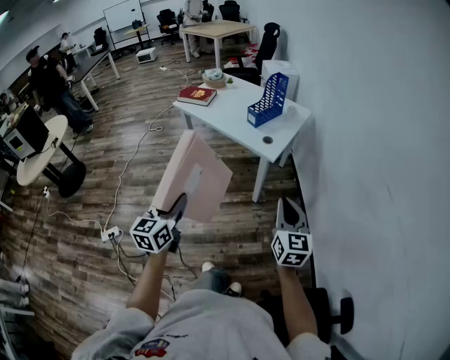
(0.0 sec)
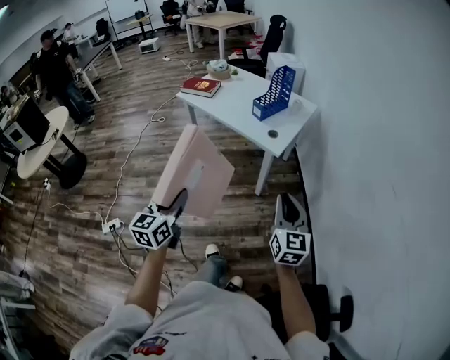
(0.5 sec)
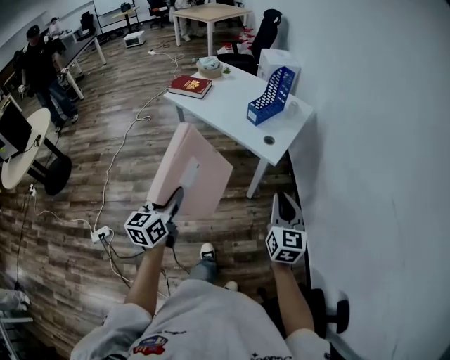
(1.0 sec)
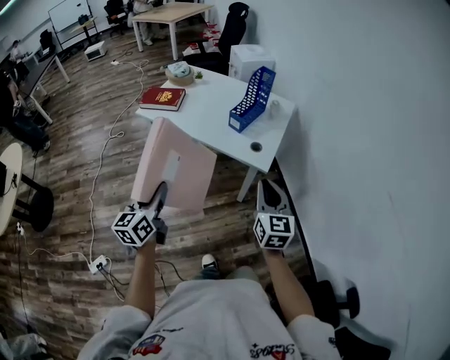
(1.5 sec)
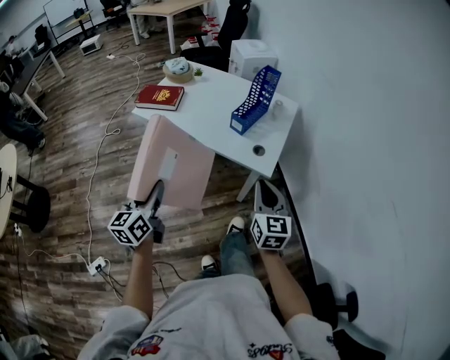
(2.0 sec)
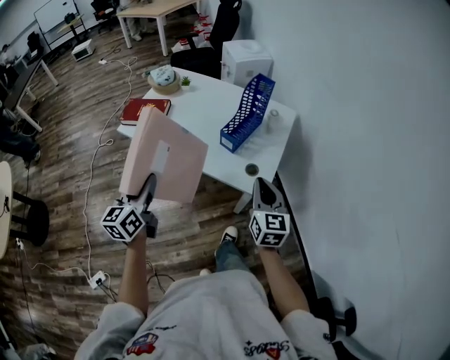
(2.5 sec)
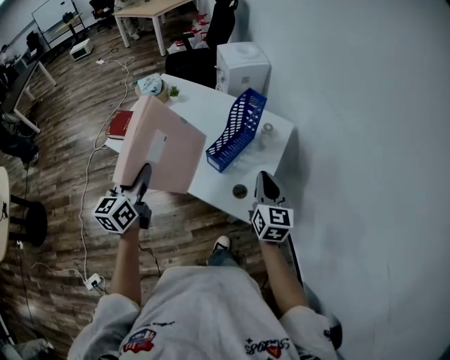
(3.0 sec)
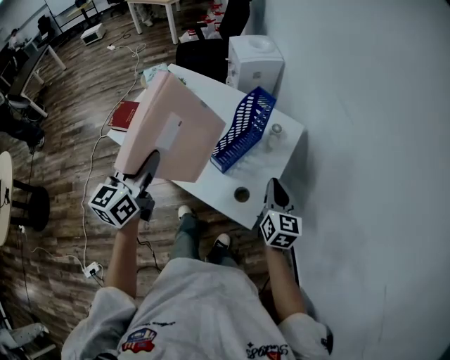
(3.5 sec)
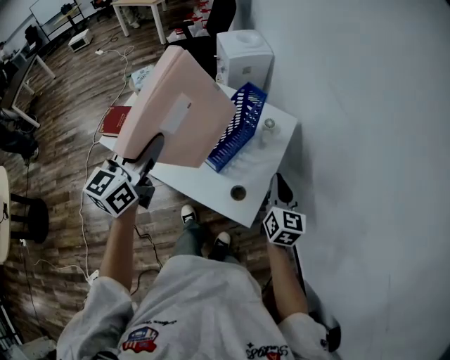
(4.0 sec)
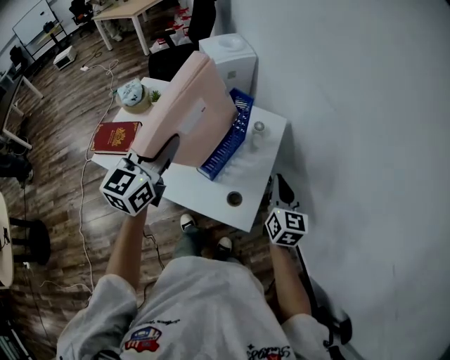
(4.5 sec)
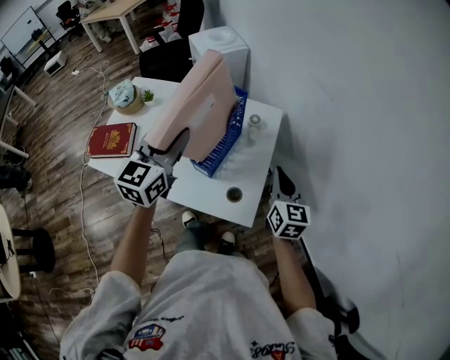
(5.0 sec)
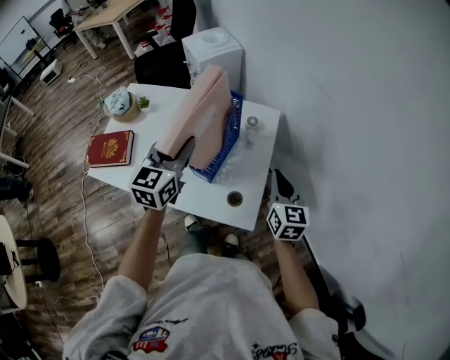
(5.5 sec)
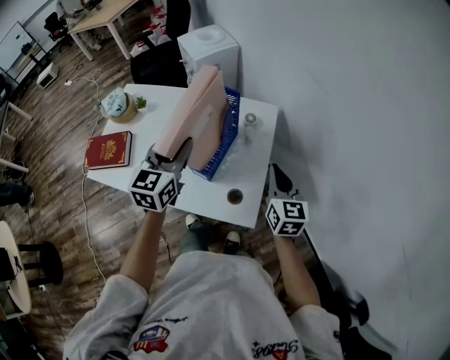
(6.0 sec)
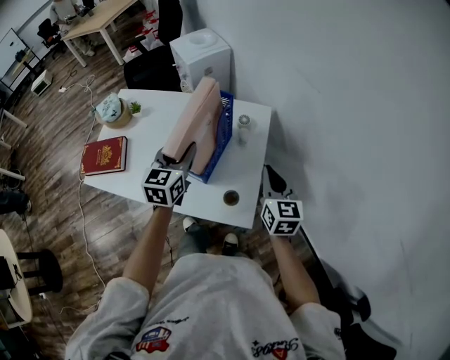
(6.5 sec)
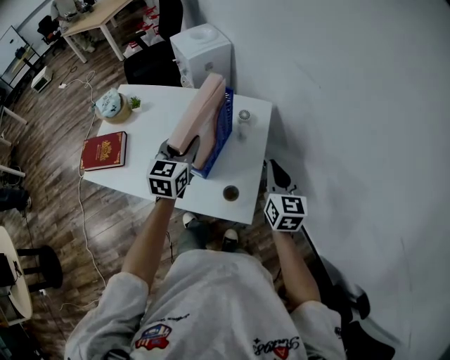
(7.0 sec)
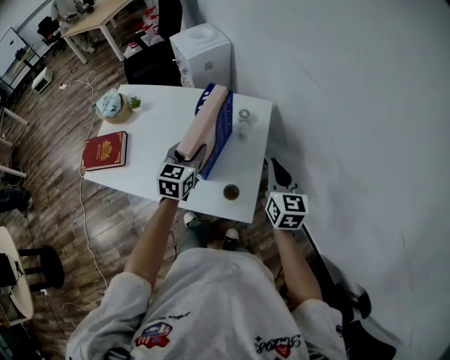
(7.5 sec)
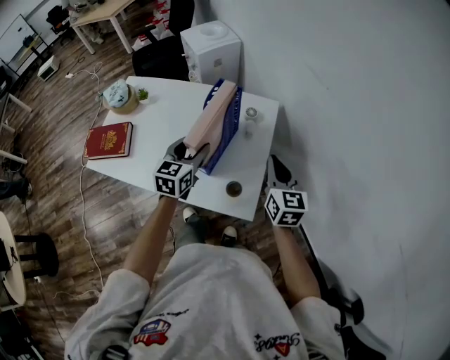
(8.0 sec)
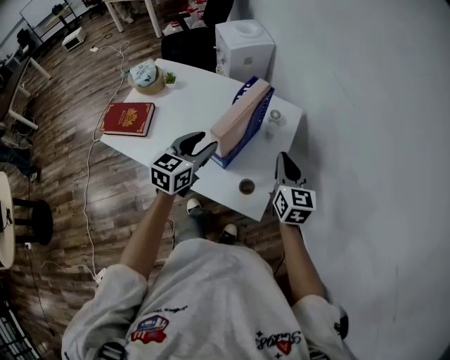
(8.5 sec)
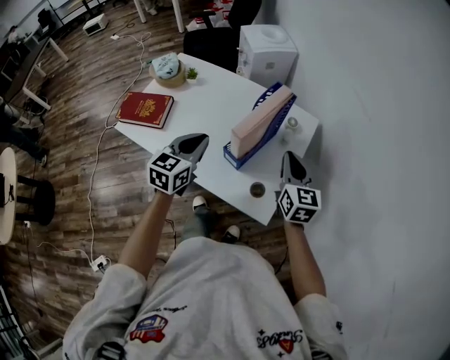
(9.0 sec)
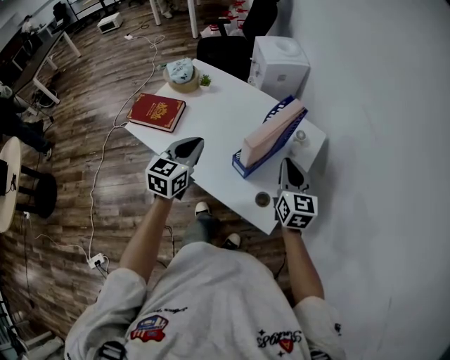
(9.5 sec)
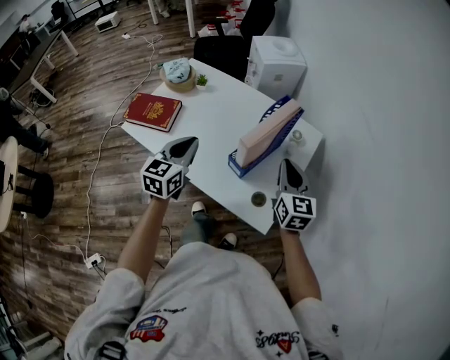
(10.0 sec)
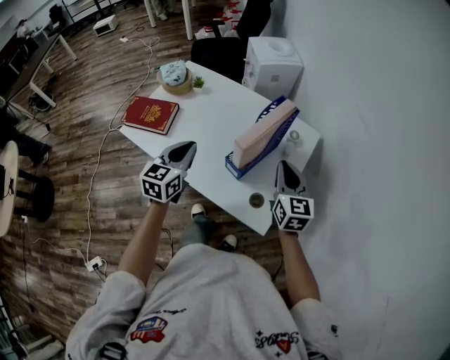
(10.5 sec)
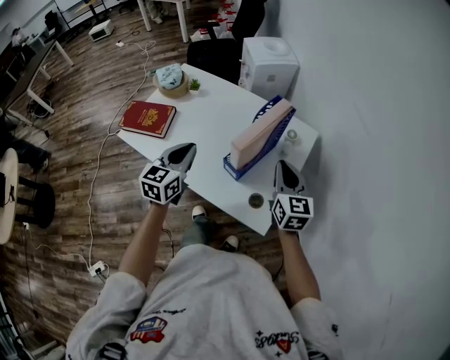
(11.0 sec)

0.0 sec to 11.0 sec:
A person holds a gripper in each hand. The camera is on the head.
0.0 sec to 2.0 sec: The grippers both shift forward and to the left by roughly 35 cm.
2.0 sec to 3.5 sec: The right gripper heads forward and to the right, covering approximately 40 cm. Meanwhile the left gripper moves forward, approximately 35 cm.
3.5 sec to 5.5 sec: The left gripper moves forward and to the right, some 20 cm, and rotates roughly 20 degrees. Meanwhile the right gripper moves about 5 cm.
5.5 sec to 7.5 sec: The left gripper goes approximately 10 cm downward.
7.5 sec to 9.0 sec: The left gripper moves to the left, backward and upward, roughly 15 cm, and closes up, while the right gripper shifts some 10 cm to the left.
9.0 sec to 11.0 sec: The grippers move only a little.

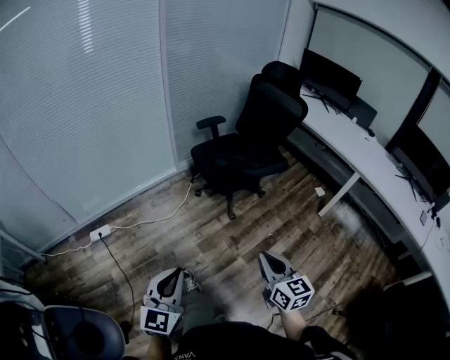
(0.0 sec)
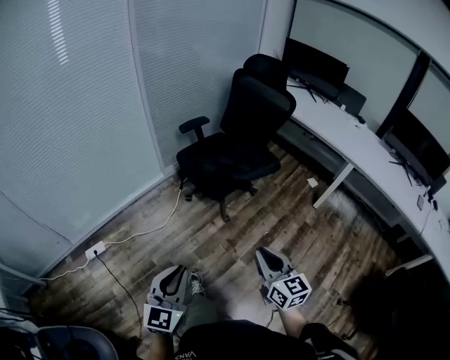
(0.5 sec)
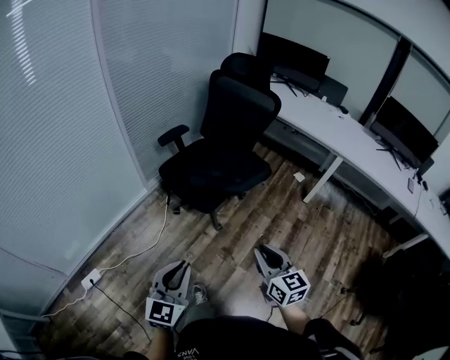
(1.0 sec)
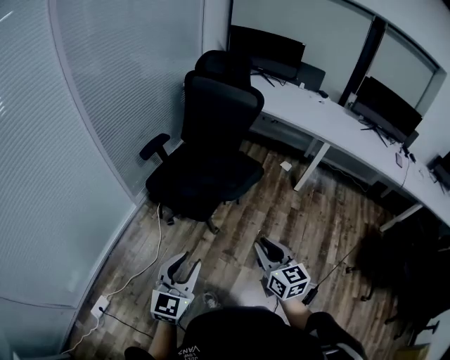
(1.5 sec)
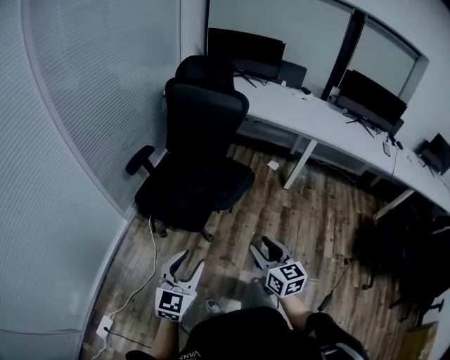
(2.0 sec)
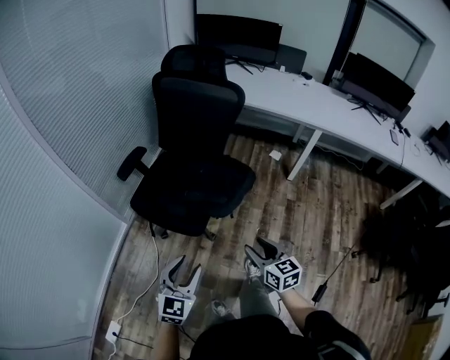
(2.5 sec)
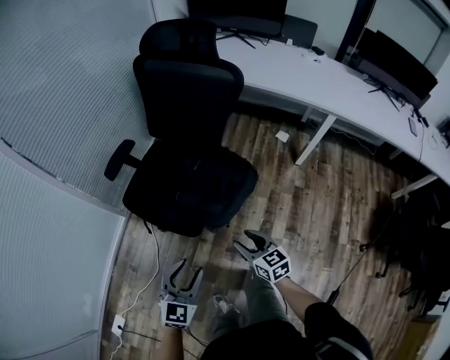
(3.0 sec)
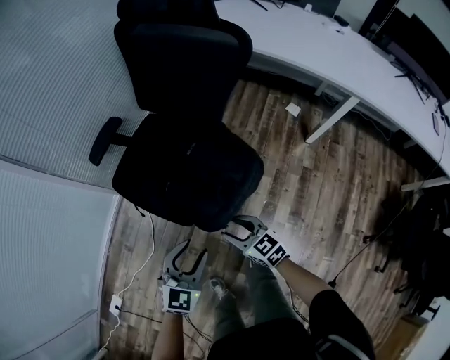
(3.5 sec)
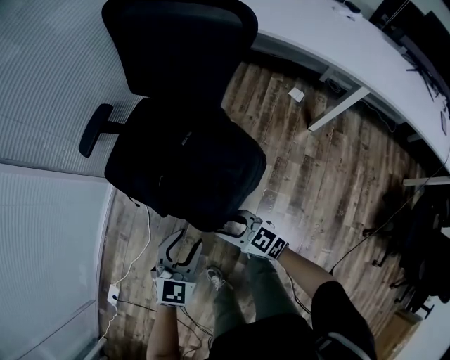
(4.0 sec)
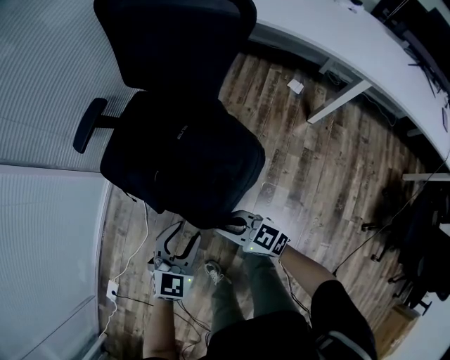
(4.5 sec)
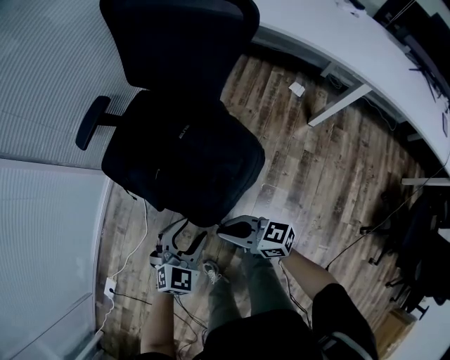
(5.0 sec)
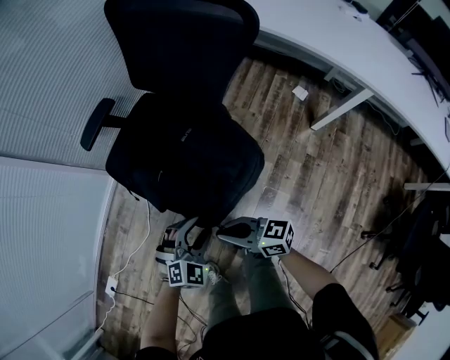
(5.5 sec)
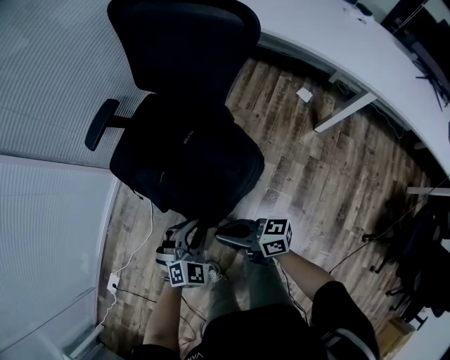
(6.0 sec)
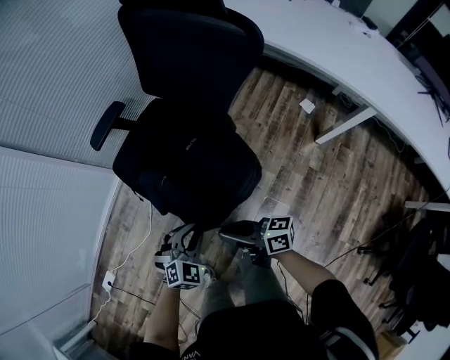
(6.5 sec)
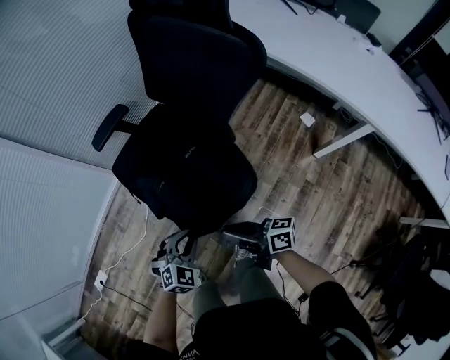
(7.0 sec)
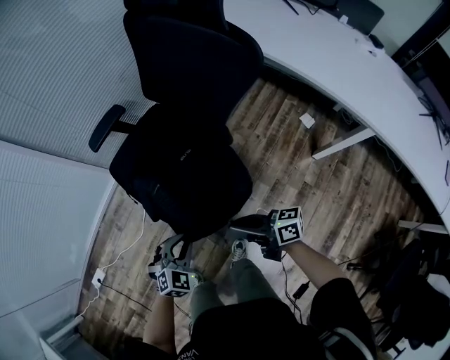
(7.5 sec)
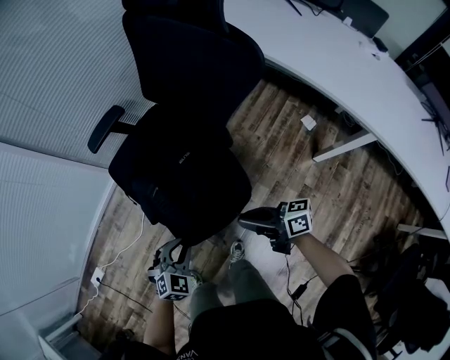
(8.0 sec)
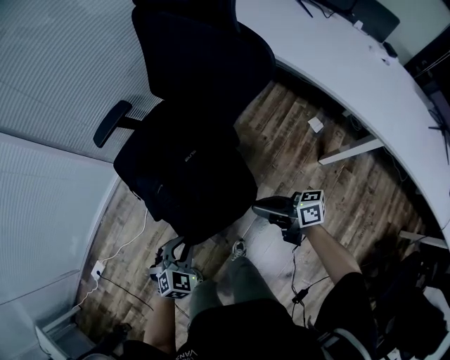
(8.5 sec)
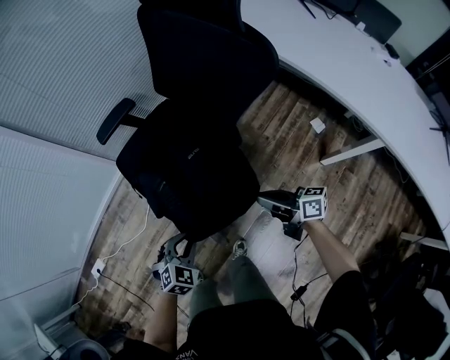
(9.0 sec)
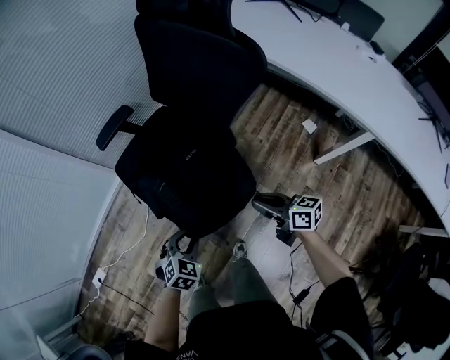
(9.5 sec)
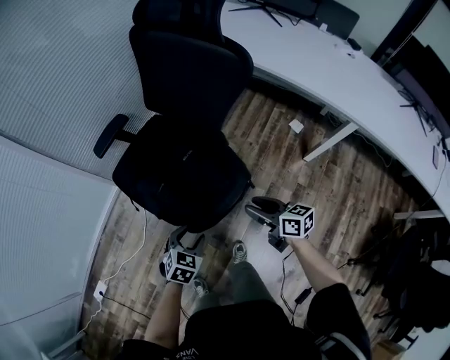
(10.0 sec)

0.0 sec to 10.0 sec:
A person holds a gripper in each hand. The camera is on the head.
0.0 sec to 2.0 sec: The right gripper ends up some 30 cm from where it was, changes its angle by approximately 30 degrees, and opens, while the left gripper ends up about 40 cm from where it was, changes its angle by roughly 40 degrees, and opens up.
2.0 sec to 4.0 sec: The right gripper changes place by approximately 40 cm, and rotates approximately 50 degrees. Meanwhile the left gripper moves approximately 40 cm.
4.0 sec to 6.0 sec: The right gripper shifts roughly 5 cm upward, rotates some 40 degrees, and closes its fingers. The left gripper goes some 5 cm downward, turns by roughly 20 degrees, and closes.
6.0 sec to 8.0 sec: The right gripper moves to the right, some 15 cm.
8.0 sec to 10.0 sec: The right gripper swivels about 30 degrees, and opens; the left gripper opens its fingers.

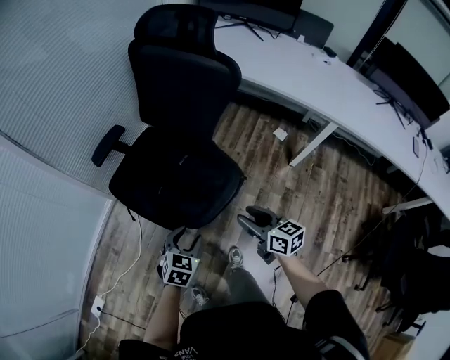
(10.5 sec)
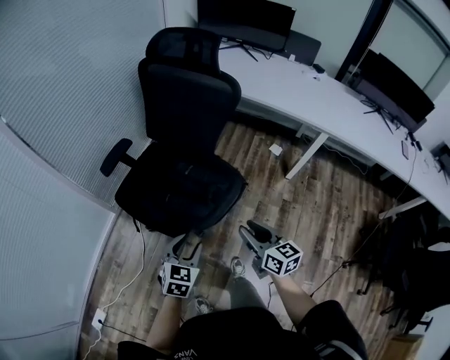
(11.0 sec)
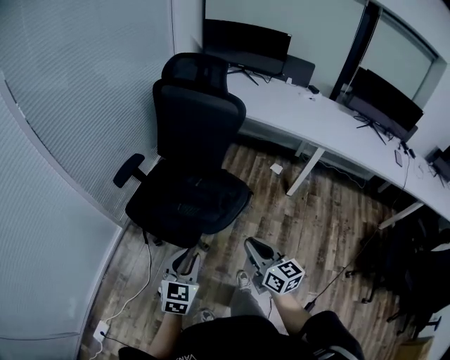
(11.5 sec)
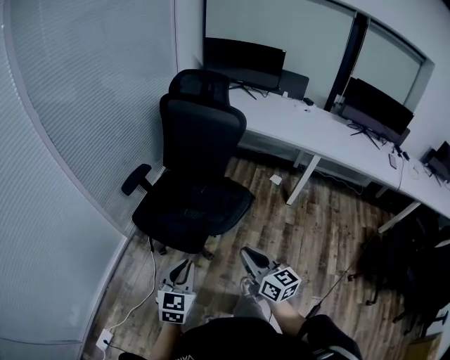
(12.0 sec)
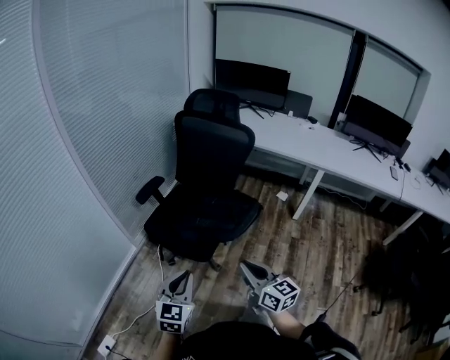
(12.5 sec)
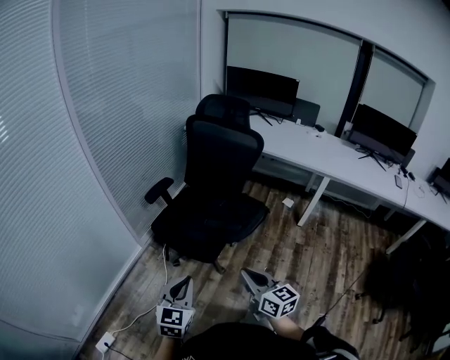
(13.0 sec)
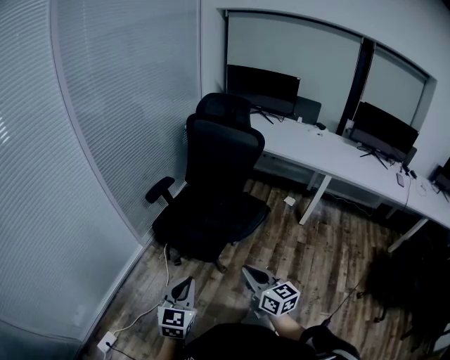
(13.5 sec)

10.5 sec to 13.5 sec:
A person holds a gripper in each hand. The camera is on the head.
10.5 sec to 12.0 sec: The left gripper travels upward, backward and to the left by approximately 30 cm, turns by approximately 20 degrees, and closes. The right gripper moves backward, upward and to the left, roughly 30 cm, swivels approximately 20 degrees, and closes up.
12.0 sec to 13.5 sec: The left gripper is displaced backward and to the left by roughly 15 cm. The right gripper is displaced to the left and backward by some 10 cm.

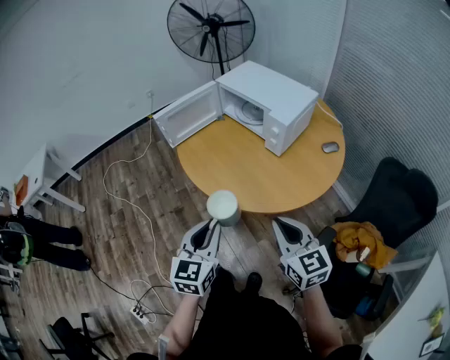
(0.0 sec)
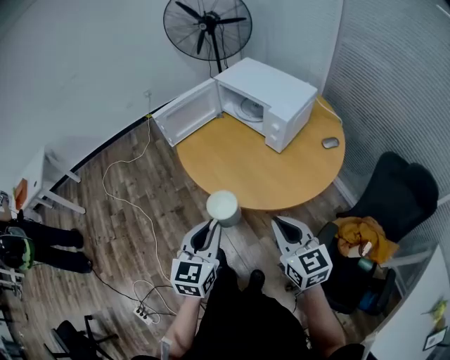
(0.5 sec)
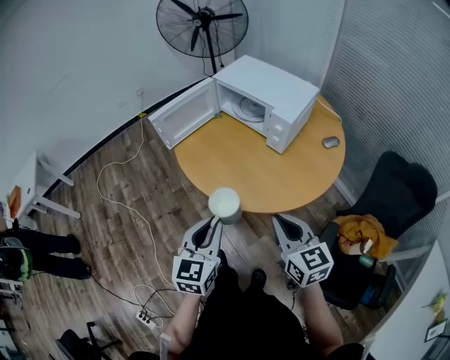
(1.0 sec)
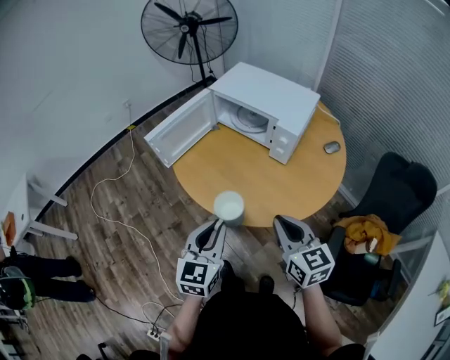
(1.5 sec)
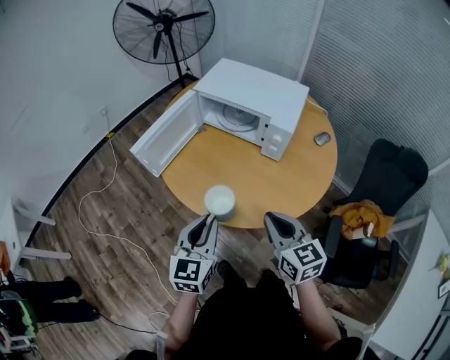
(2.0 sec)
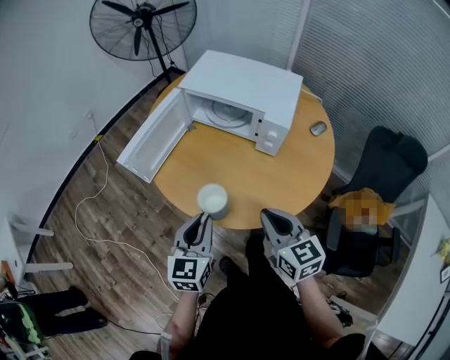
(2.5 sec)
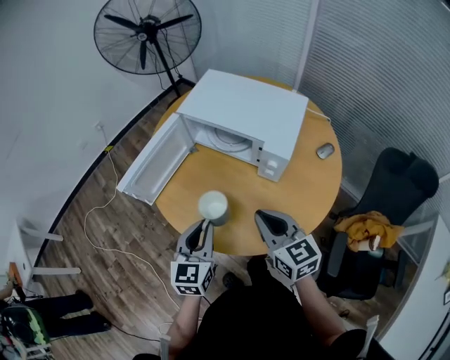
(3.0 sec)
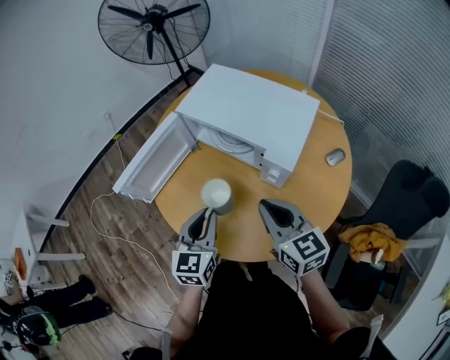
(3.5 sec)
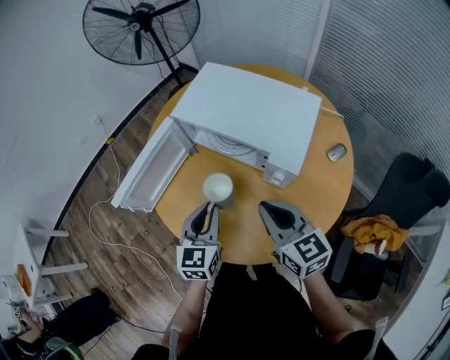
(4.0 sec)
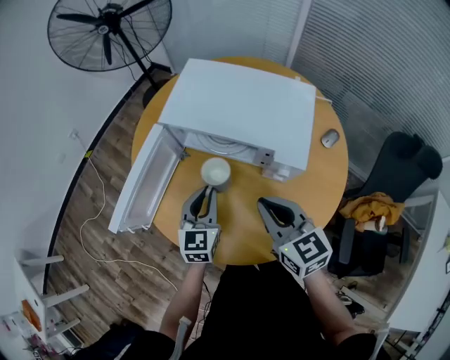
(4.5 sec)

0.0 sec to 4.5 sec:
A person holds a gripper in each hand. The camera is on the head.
0.0 sec to 2.0 sec: The grippers both shift forward and to the left by about 20 cm.
2.0 sec to 4.5 sec: Both grippers travel together forward, some 25 cm.
